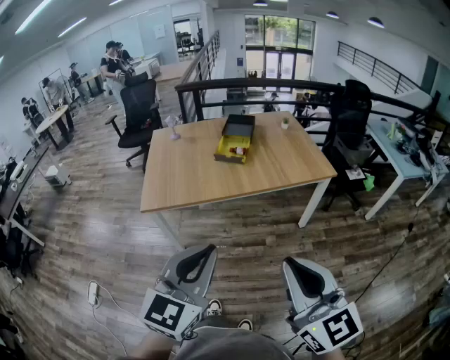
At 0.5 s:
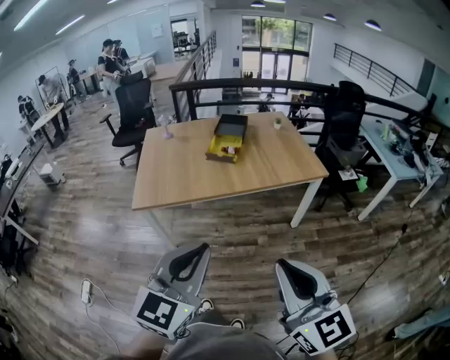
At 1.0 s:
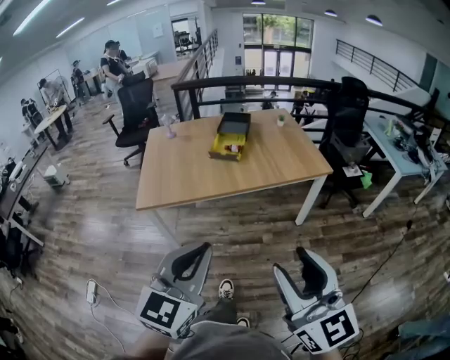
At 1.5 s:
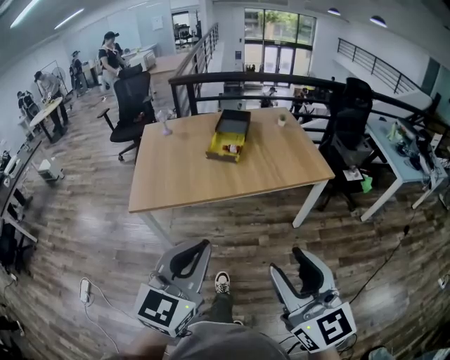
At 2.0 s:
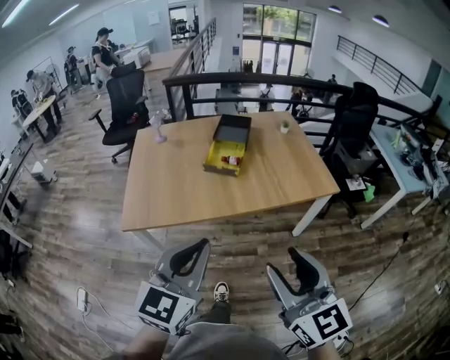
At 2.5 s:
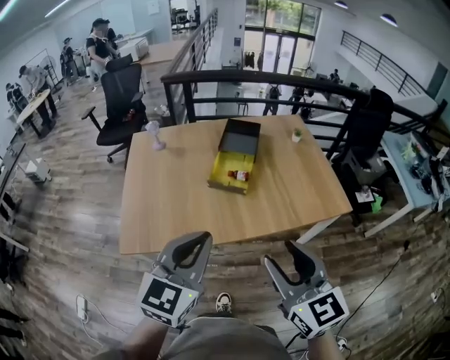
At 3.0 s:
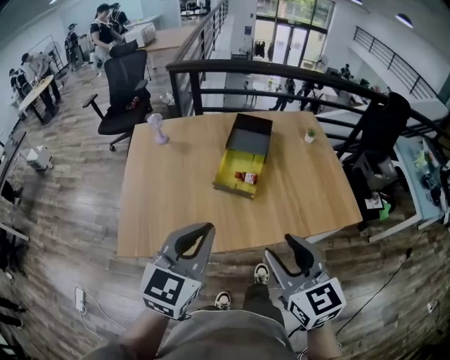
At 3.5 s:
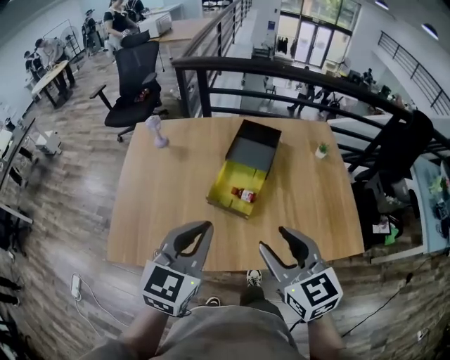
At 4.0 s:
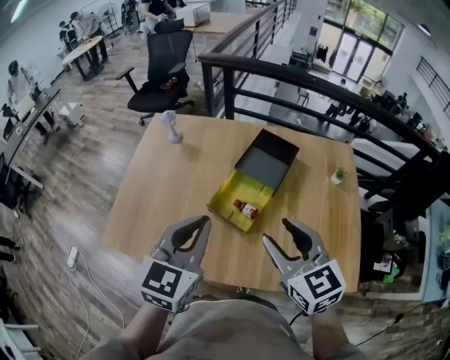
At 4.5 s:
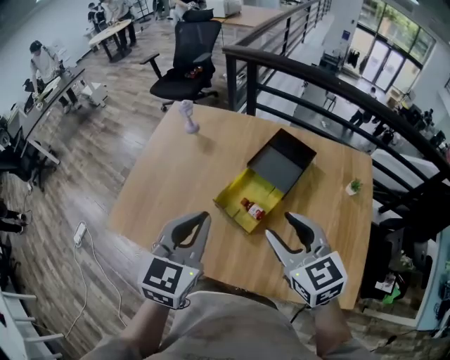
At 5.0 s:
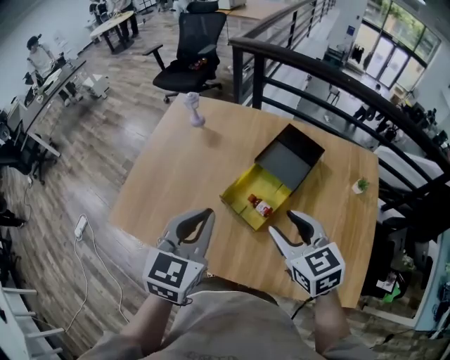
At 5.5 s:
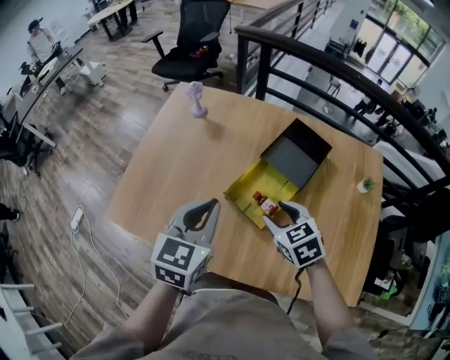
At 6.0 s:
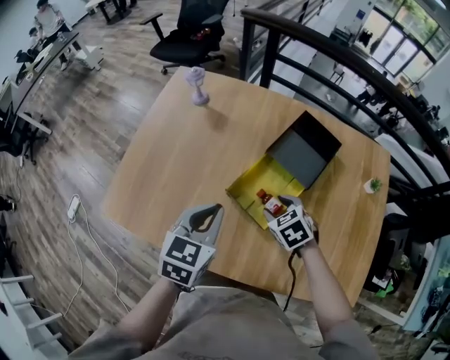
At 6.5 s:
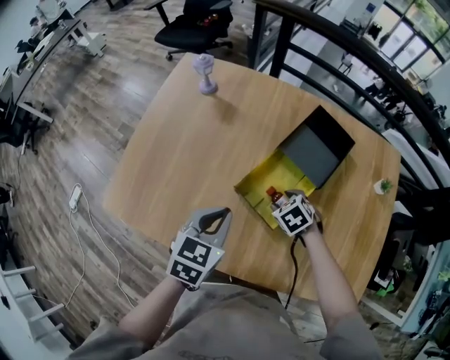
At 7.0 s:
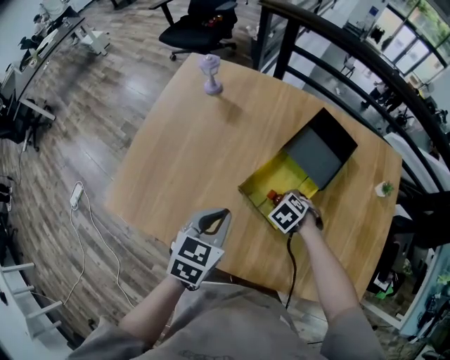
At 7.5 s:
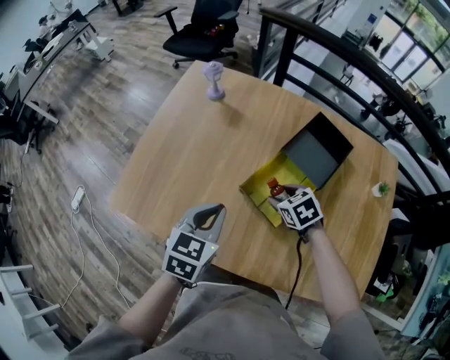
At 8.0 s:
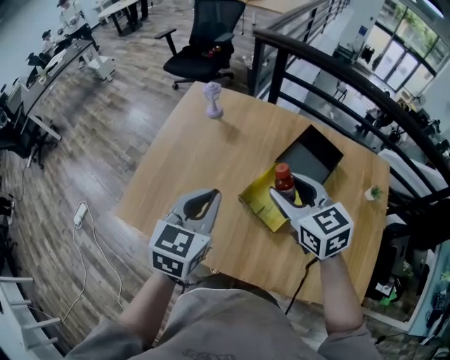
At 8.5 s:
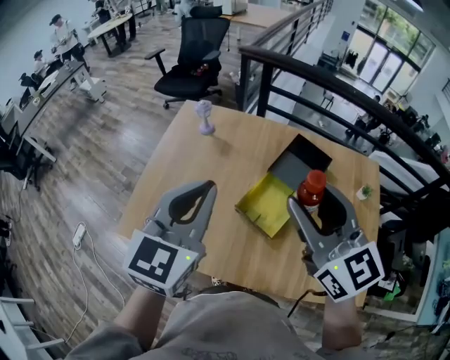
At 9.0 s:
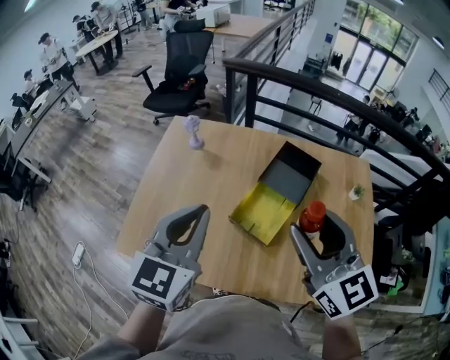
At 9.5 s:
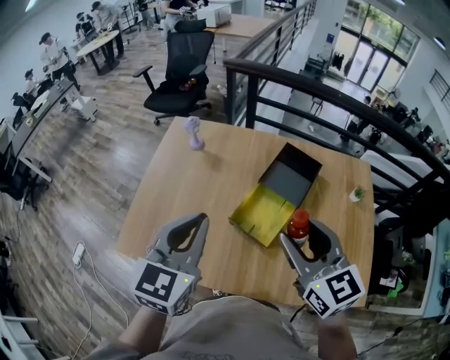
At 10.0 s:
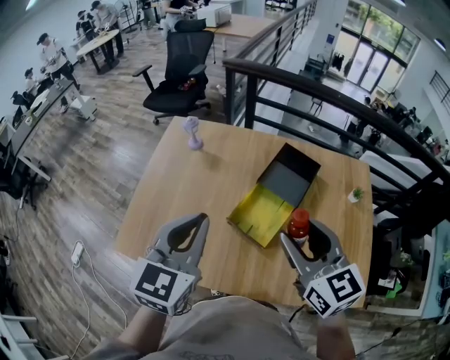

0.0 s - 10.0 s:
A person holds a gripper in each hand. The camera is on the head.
0.0 s - 2.0 s: Both grippers travel together forward, approximately 20 cm. The right gripper opens up.
2.0 s - 4.0 s: Both grippers are carried forward, roughly 50 cm. The left gripper turns by roughly 20 degrees; the right gripper swivels about 30 degrees.
4.0 s - 6.0 s: The left gripper heads downward and forward, covering roughly 15 cm, and changes its angle by roughly 20 degrees; the right gripper goes approximately 30 cm downward and forward, and tilts its fingers some 40 degrees downward.
6.0 s - 8.0 s: The left gripper shifts approximately 10 cm upward; the right gripper heads upward, covering approximately 20 cm, and points its fingers about 30 degrees further upward.
8.0 s - 10.0 s: The right gripper is displaced backward, upward and to the right by roughly 15 cm. The left gripper goes about 10 cm upward.

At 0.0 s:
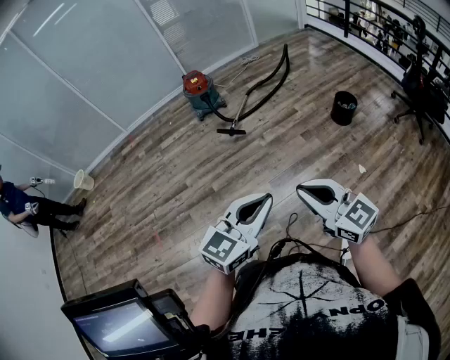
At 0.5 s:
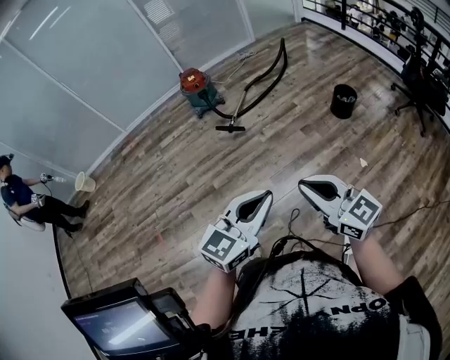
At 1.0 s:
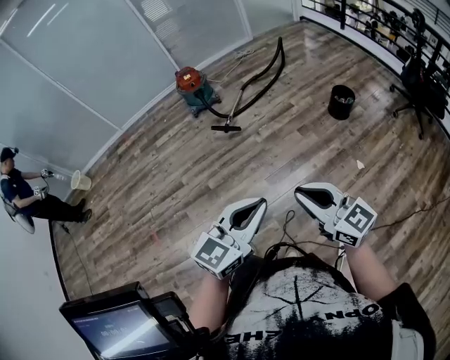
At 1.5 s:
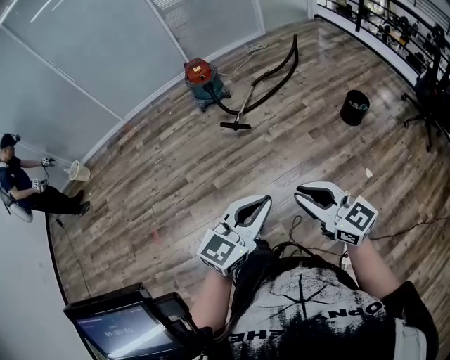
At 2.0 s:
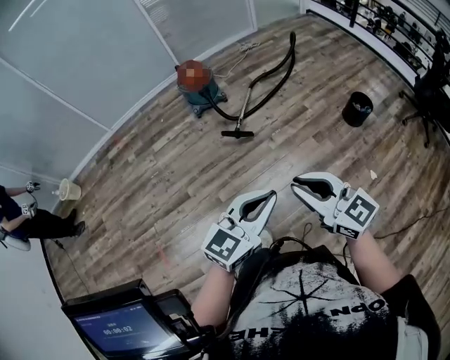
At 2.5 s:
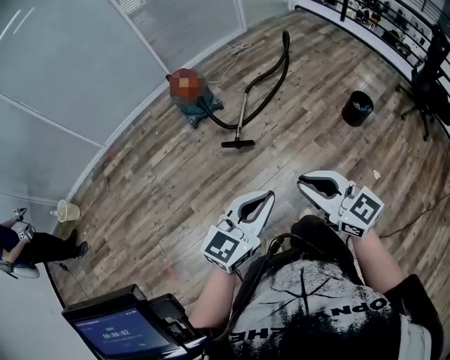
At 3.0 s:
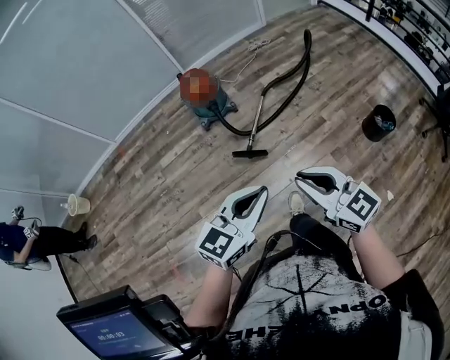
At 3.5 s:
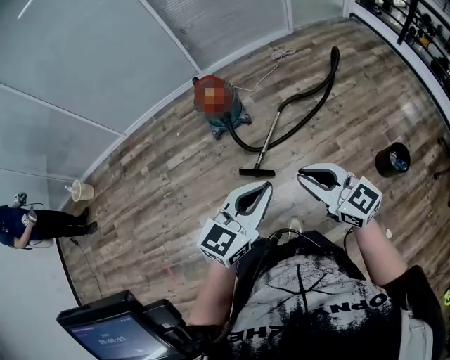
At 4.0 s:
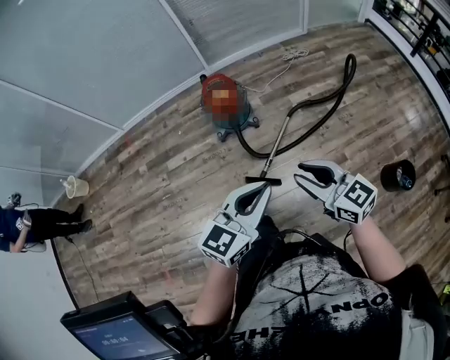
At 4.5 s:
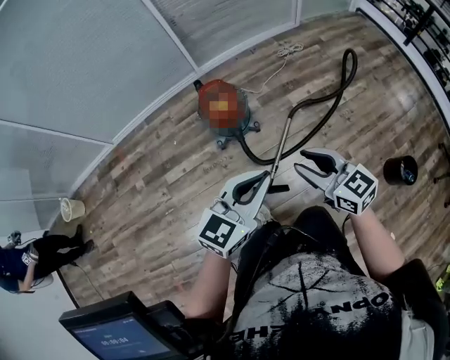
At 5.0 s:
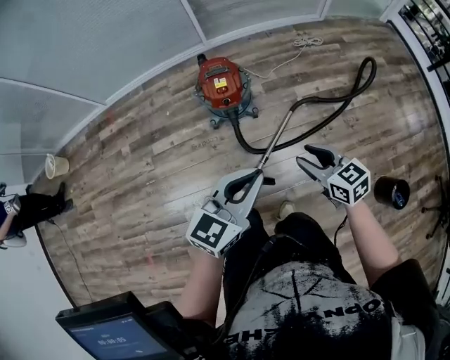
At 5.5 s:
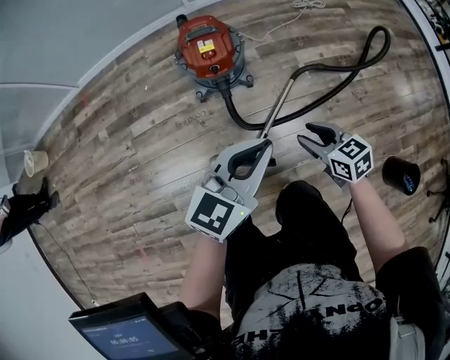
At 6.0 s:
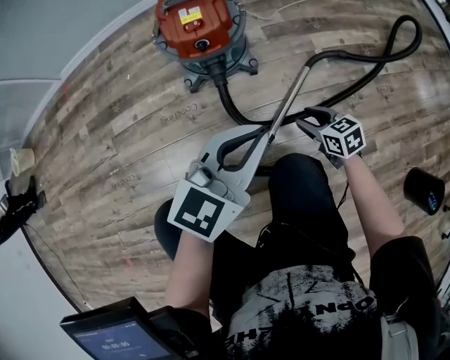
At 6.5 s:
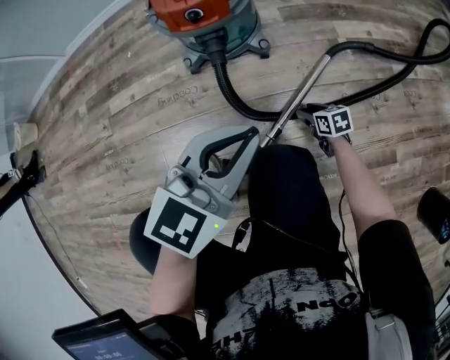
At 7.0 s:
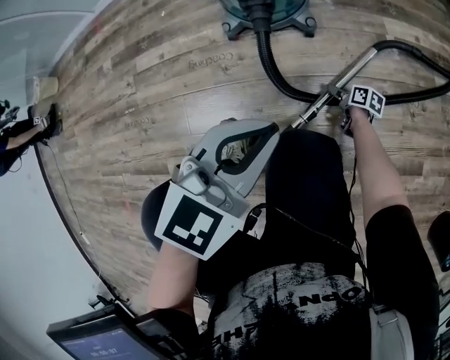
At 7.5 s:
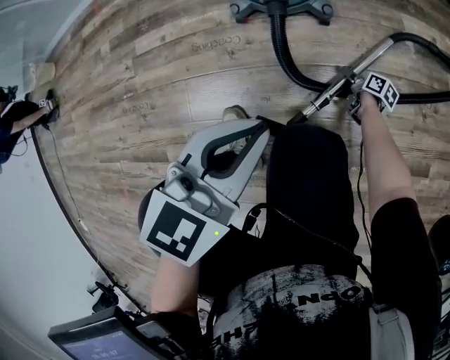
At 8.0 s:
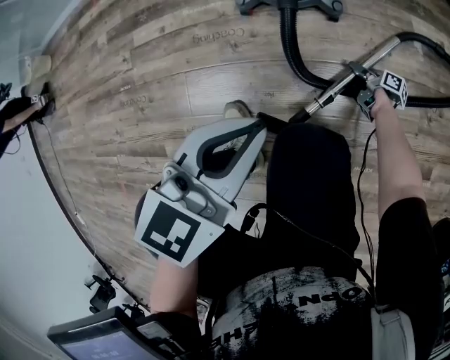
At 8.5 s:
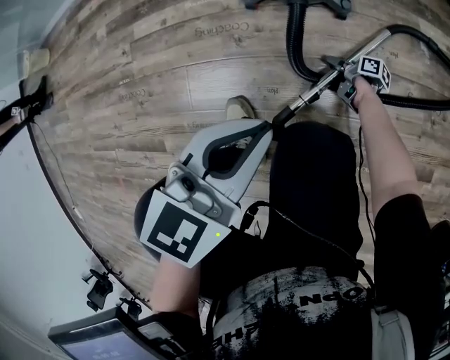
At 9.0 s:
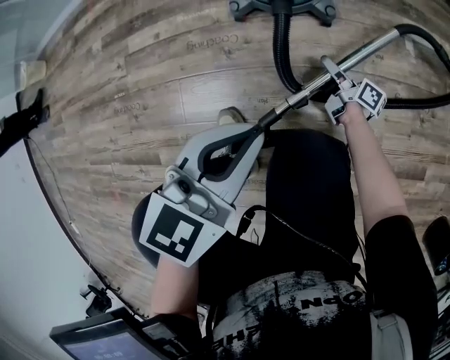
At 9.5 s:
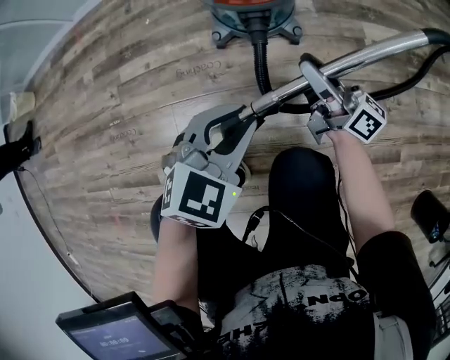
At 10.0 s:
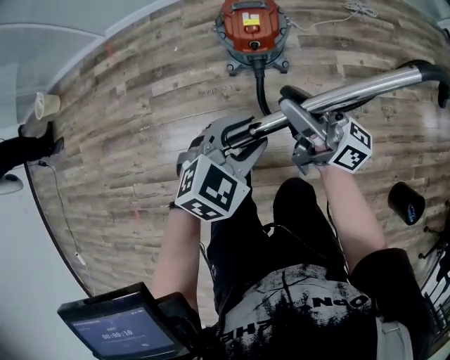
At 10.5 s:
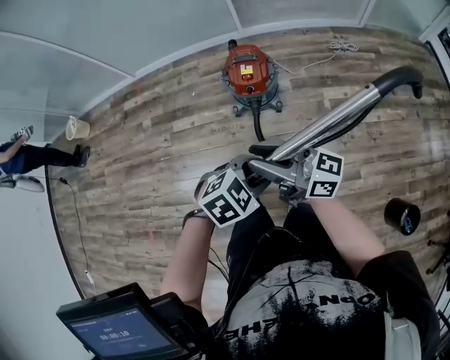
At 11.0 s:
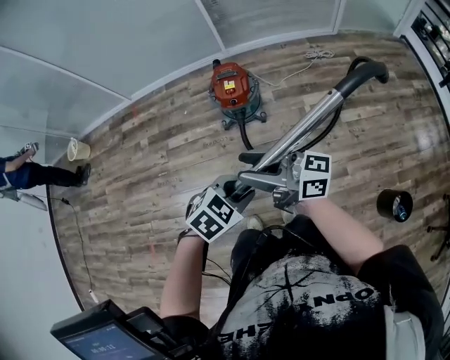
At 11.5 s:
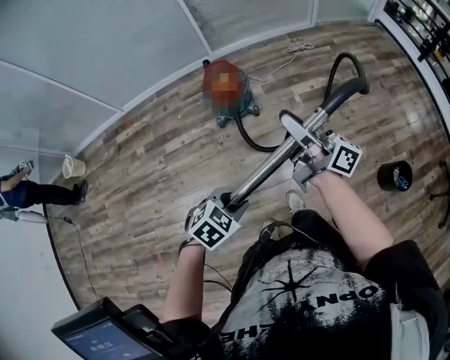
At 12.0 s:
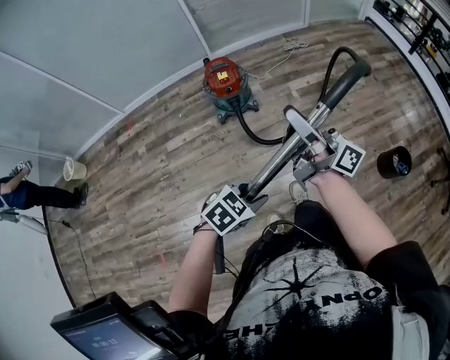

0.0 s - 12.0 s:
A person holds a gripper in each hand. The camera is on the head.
0.0 s - 2.0 s: The grippers both shift forward and to the left by roughly 30 cm.
2.0 s - 4.0 s: The two grippers travel together, forward, some 60 cm.
4.0 s - 6.0 s: The grippers both shift downward and forward by some 60 cm. The right gripper tips its fingers downward by approximately 30 degrees.
6.0 s - 8.0 s: The left gripper moves downward and to the left, approximately 20 cm, and rotates approximately 20 degrees, while the right gripper moves downward, roughly 30 cm, and rotates around the line of its fingers by roughly 70 degrees, clockwise from behind.
8.0 s - 10.0 s: The left gripper moves upward, about 30 cm, turns by roughly 30 degrees, and opens its fingers. Meanwhile the right gripper goes some 80 cm upward, and tilts its fingers roughly 50 degrees upward.
10.0 s - 12.0 s: The right gripper ends up some 40 cm from where it was, and rotates some 20 degrees, while the left gripper changes place by some 40 cm, and turns by some 20 degrees.

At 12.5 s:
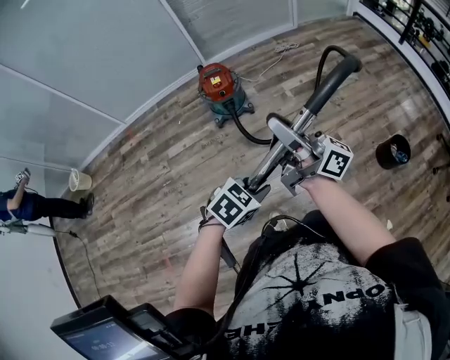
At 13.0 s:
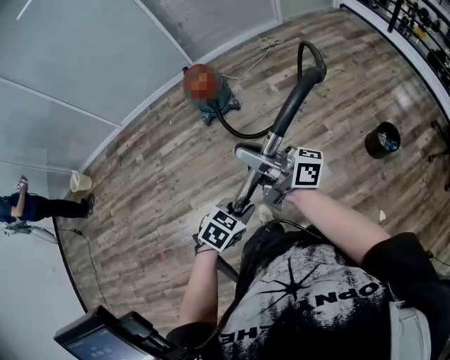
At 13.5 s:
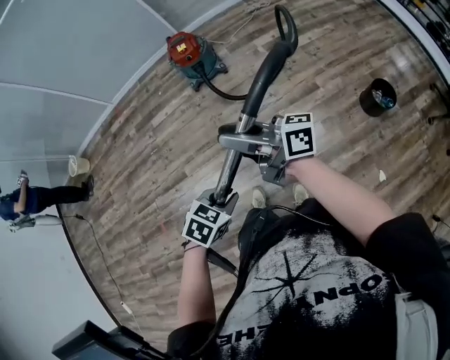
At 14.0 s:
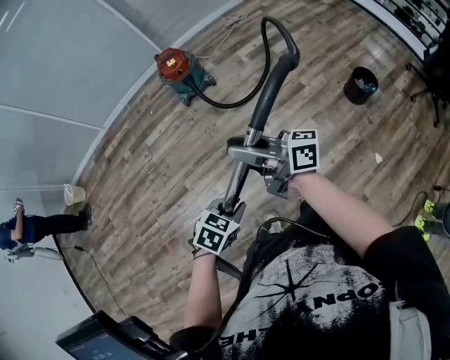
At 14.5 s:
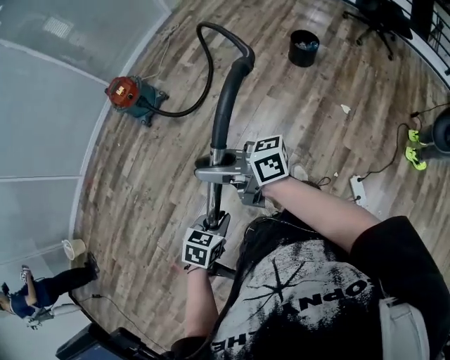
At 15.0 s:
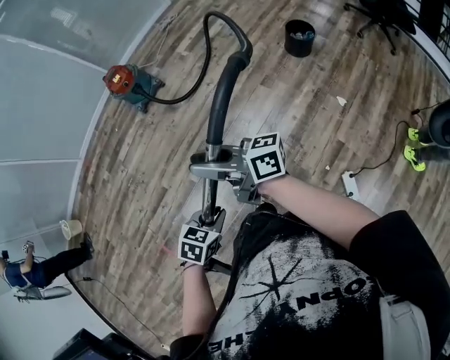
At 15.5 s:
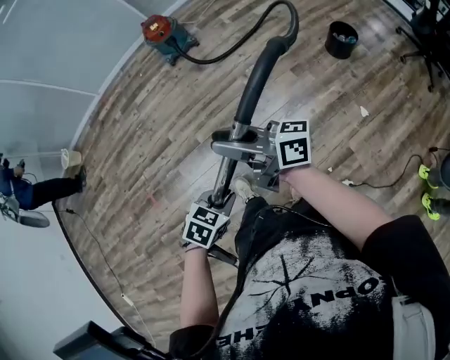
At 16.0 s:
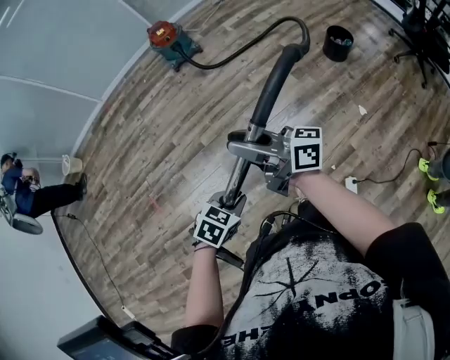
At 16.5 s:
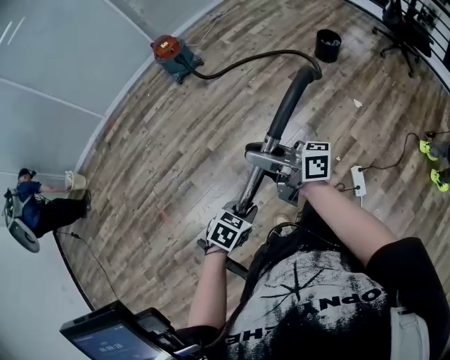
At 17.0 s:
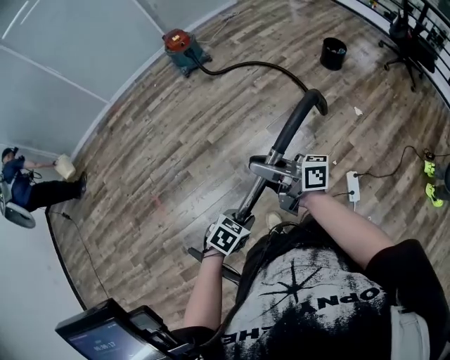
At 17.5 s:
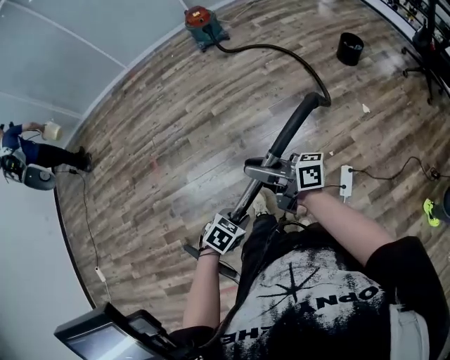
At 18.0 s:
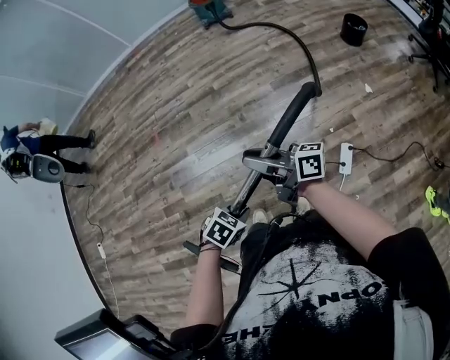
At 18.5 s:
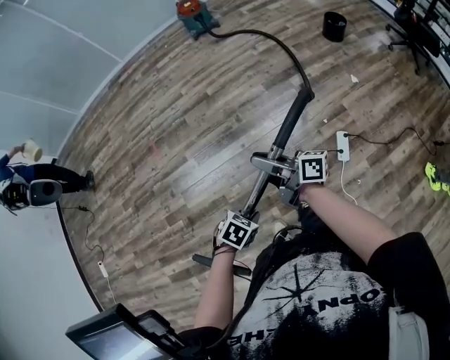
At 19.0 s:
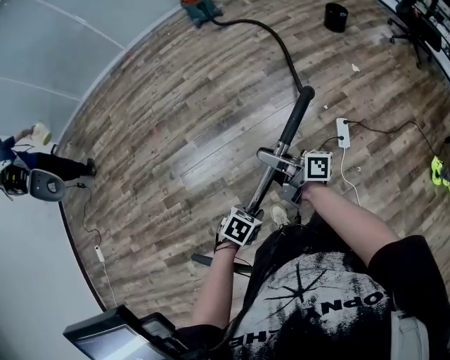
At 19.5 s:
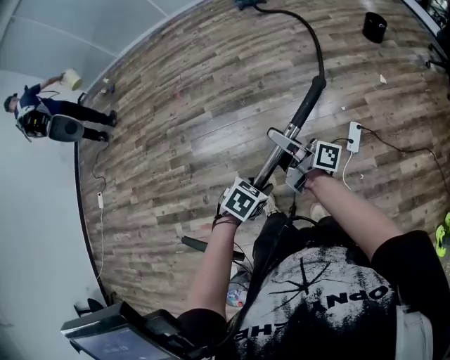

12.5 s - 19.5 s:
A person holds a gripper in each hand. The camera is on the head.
12.5 s - 14.5 s: The two grippers go about 40 cm backward.
14.5 s - 16.0 s: Both grippers travel together backward, about 25 cm.
16.0 s - 17.5 s: The left gripper moves approximately 35 cm; the right gripper moves roughly 35 cm.
17.5 s - 19.5 s: The right gripper shifts by approximately 35 cm, while the left gripper changes place by about 35 cm.
